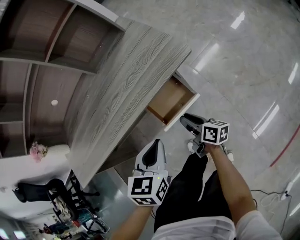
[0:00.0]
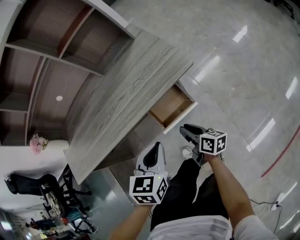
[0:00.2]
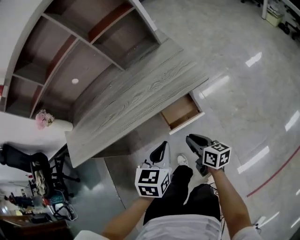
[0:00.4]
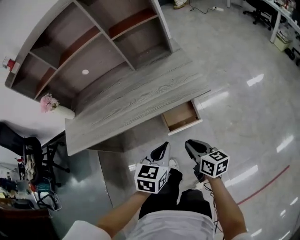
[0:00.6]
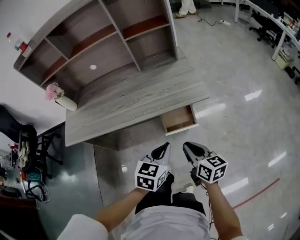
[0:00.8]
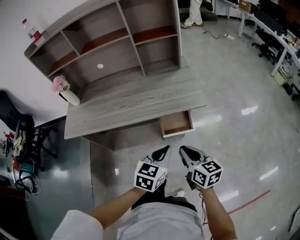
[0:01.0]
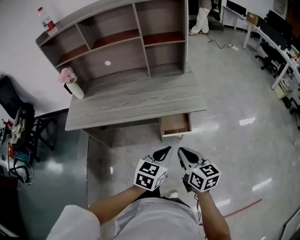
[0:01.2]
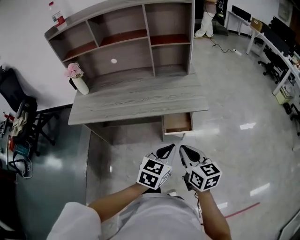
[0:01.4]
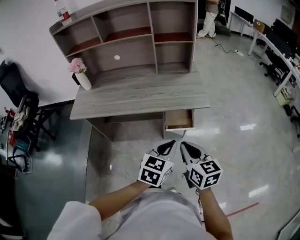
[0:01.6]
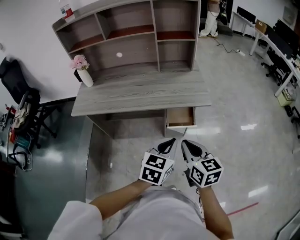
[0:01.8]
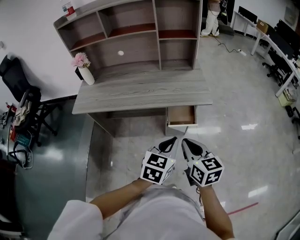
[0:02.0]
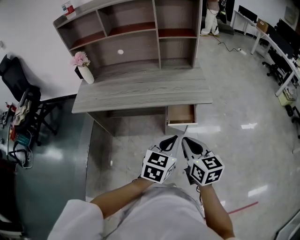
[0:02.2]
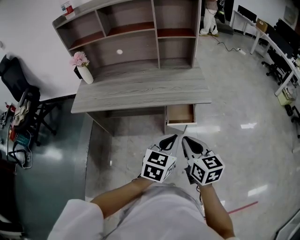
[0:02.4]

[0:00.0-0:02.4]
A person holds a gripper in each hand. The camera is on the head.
0.0 to 1.2 s: The left gripper heads upward and backward, covering about 15 cm, while the right gripper shifts approximately 35 cm upward and backward, rotates around the line of its fingers by roughly 40 degrees, counterclockwise from behind, and closes.
1.2 to 2.4 s: The right gripper ends up approximately 5 cm from where it was.

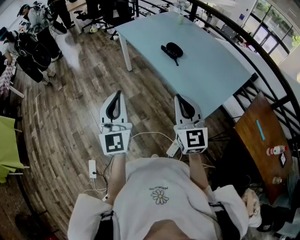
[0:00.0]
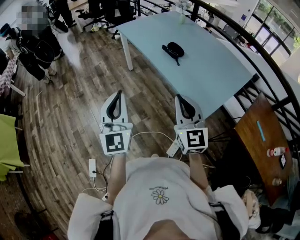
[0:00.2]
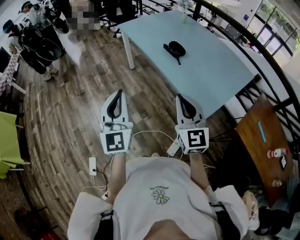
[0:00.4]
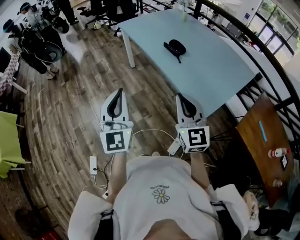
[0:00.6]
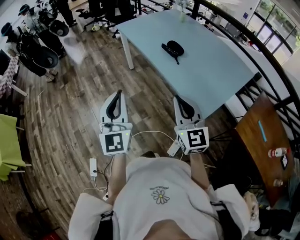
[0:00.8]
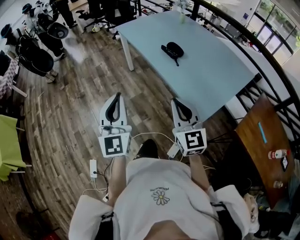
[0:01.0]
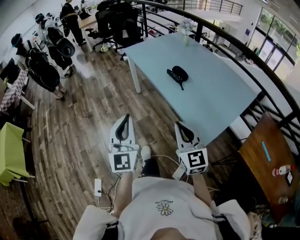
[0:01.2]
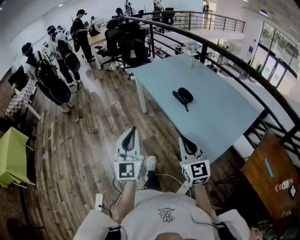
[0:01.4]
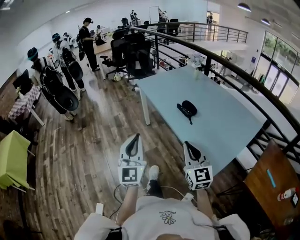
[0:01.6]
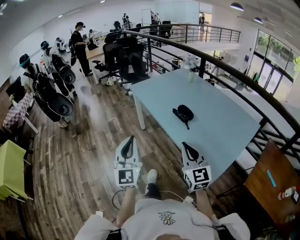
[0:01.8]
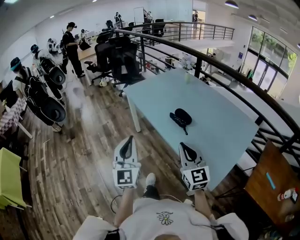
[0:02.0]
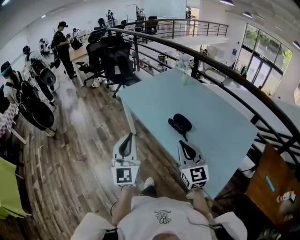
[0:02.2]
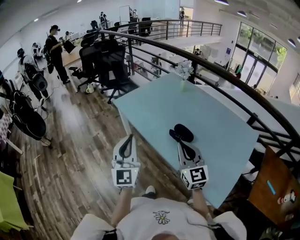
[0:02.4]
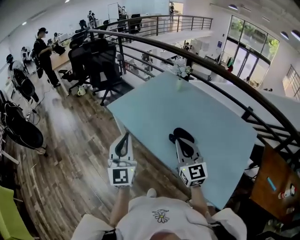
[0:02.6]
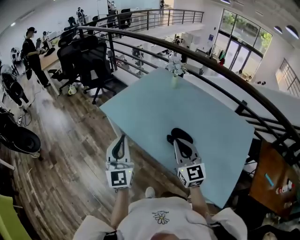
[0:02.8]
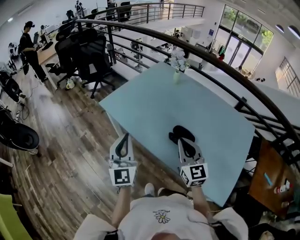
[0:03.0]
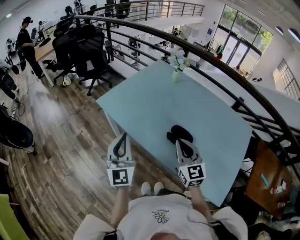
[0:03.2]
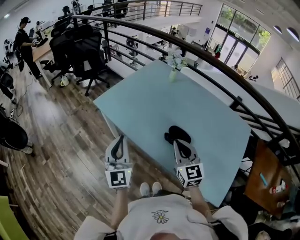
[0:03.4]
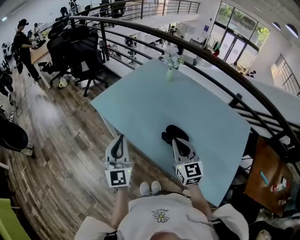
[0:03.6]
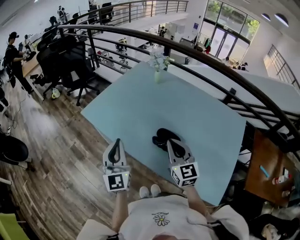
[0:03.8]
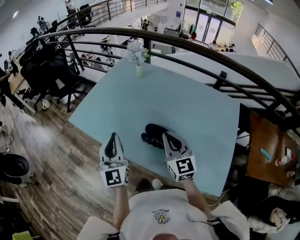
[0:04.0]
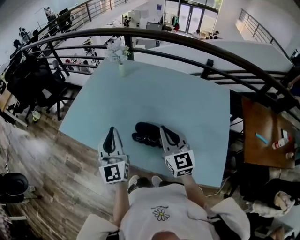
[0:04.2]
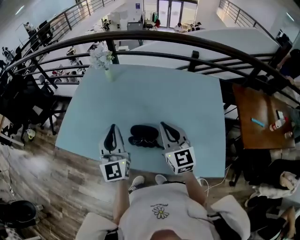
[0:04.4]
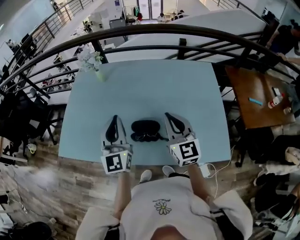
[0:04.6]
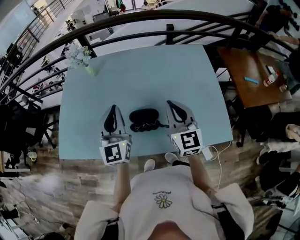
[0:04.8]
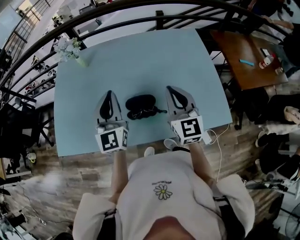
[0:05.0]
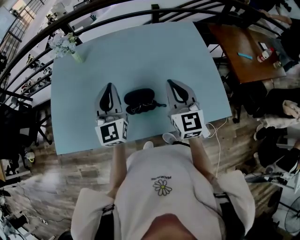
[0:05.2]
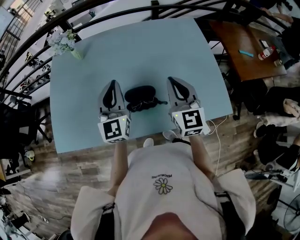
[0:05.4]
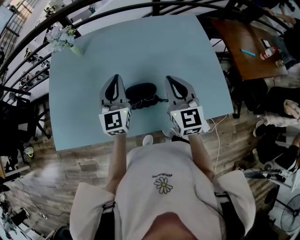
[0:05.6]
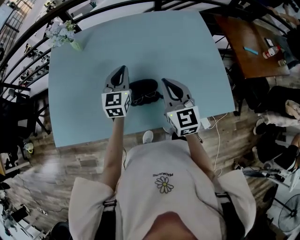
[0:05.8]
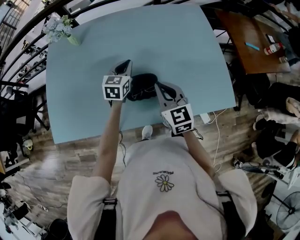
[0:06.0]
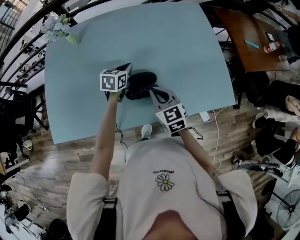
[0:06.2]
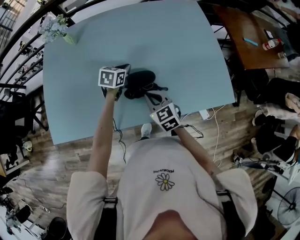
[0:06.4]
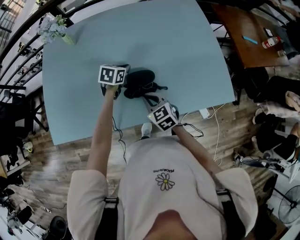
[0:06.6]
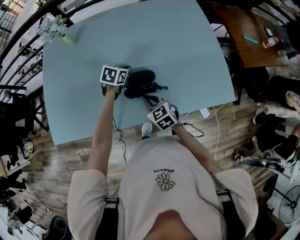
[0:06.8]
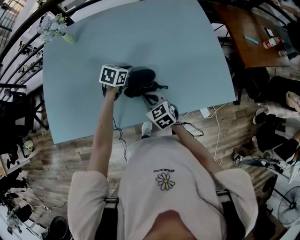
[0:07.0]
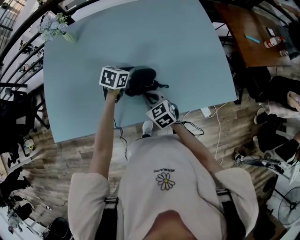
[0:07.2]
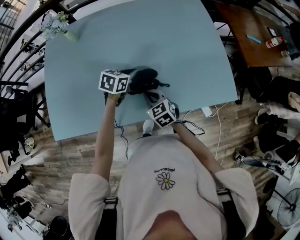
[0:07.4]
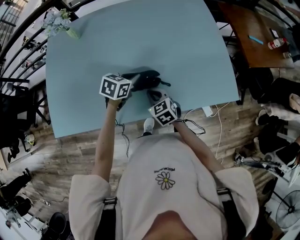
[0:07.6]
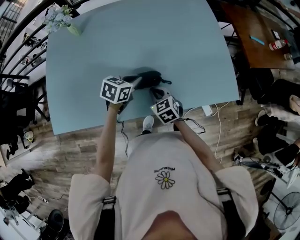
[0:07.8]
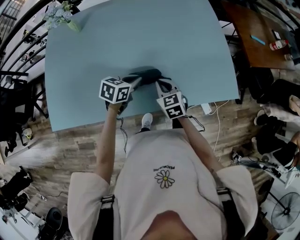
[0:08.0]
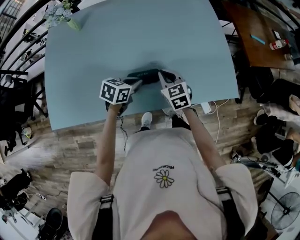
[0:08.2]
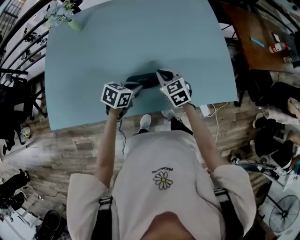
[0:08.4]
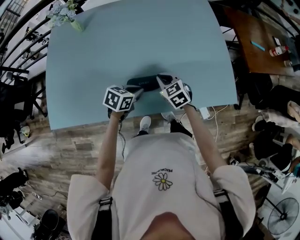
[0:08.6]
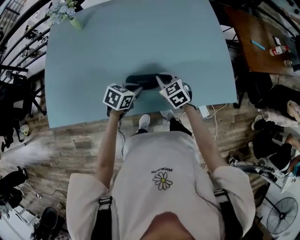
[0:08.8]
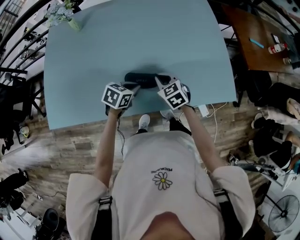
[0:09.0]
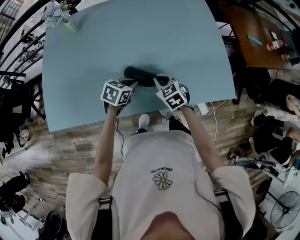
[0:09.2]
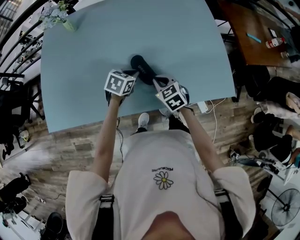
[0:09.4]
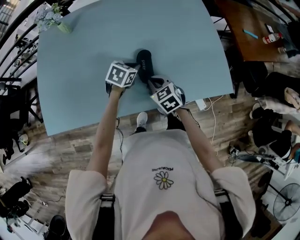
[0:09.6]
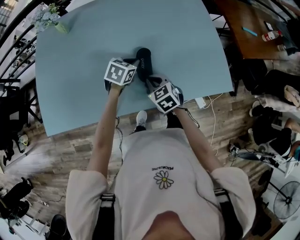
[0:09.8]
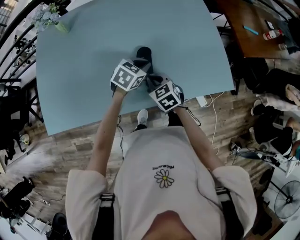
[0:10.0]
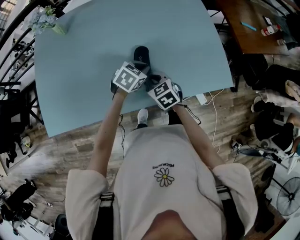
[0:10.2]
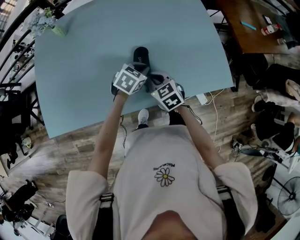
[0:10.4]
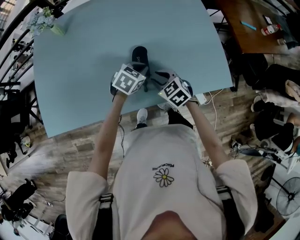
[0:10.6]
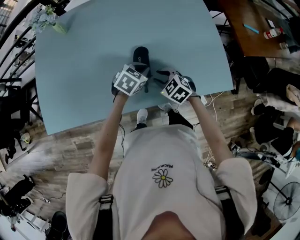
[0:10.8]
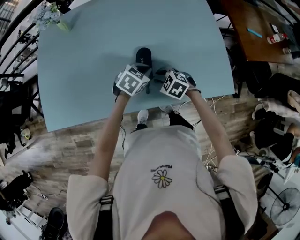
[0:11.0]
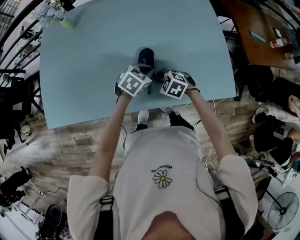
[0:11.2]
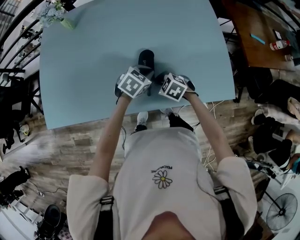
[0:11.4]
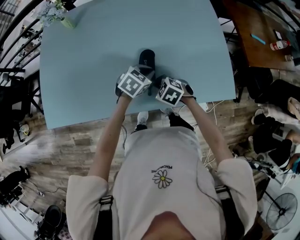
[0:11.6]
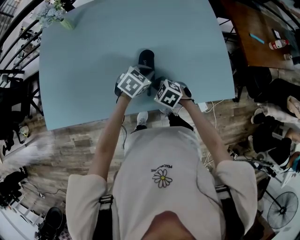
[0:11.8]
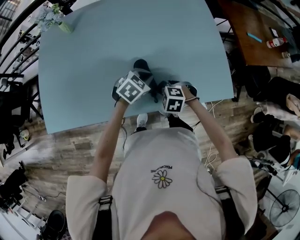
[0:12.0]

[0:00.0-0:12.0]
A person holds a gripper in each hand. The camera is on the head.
0.0 to 1.6 s: The grippers both shift forward by some 10 cm.
1.6 to 3.0 s: Both grippers travel together forward, about 40 cm. The right gripper changes its angle by some 20 degrees.
3.0 to 4.4 s: The left gripper goes roughly 25 cm to the right and forward, and rotates roughly 20 degrees; the right gripper goes some 15 cm to the right, and rotates roughly 20 degrees.
4.4 to 6.0 s: The left gripper moves downward, approximately 20 cm, and tips its fingers downward by approximately 40 degrees. Meanwhile the right gripper moves downward, some 10 cm, and turns by roughly 20 degrees.
6.0 to 7.6 s: The right gripper is displaced downward by approximately 15 cm, and rotates some 30 degrees. The left gripper travels backward and downward by roughly 10 cm, and swivels roughly 30 degrees.
7.6 to 9.0 s: The left gripper is displaced backward by about 5 cm; the right gripper moves roughly 5 cm.
9.0 to 10.4 s: The left gripper travels to the right and forward by some 10 cm.
10.4 to 12.0 s: The right gripper heads downward, covering approximately 5 cm, turns by roughly 50 degrees, and opens, then closes again.

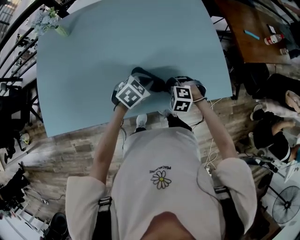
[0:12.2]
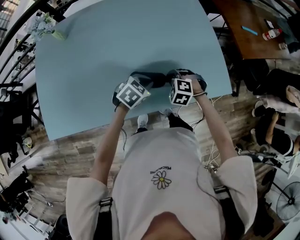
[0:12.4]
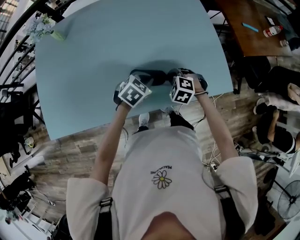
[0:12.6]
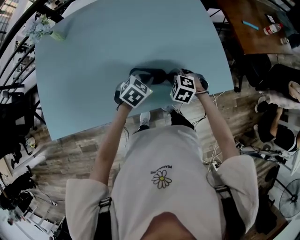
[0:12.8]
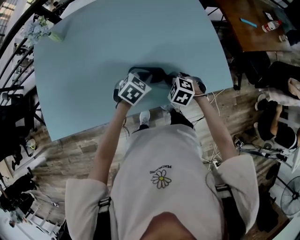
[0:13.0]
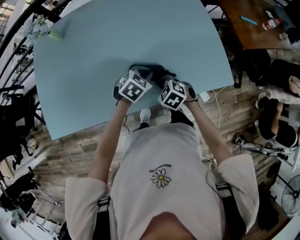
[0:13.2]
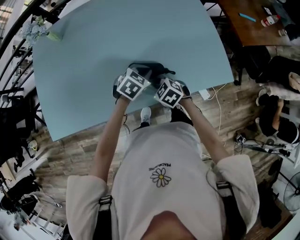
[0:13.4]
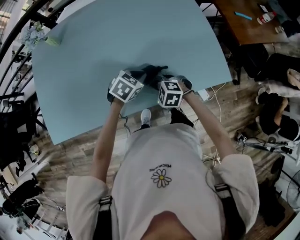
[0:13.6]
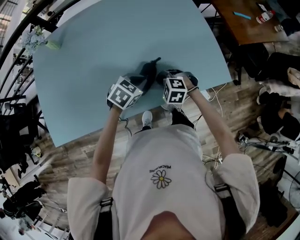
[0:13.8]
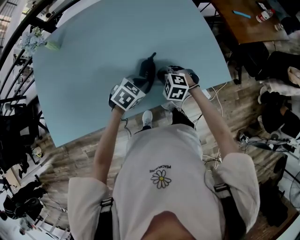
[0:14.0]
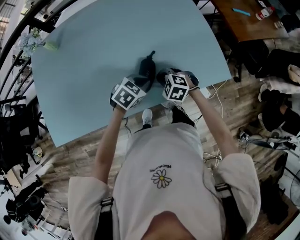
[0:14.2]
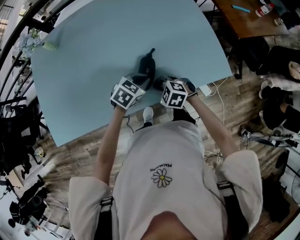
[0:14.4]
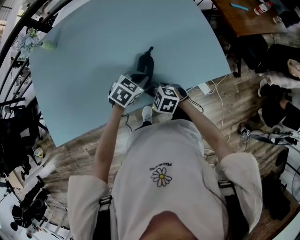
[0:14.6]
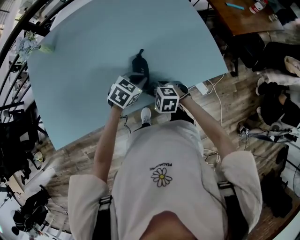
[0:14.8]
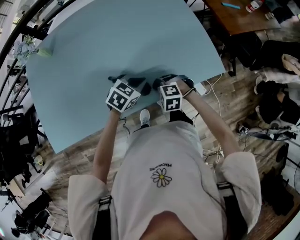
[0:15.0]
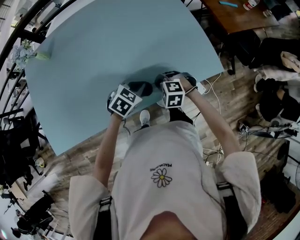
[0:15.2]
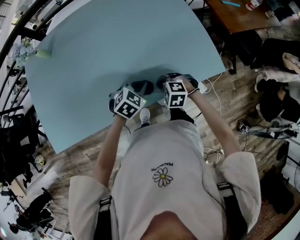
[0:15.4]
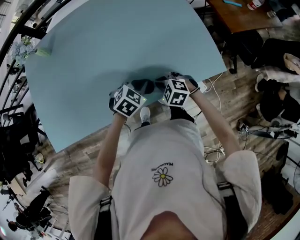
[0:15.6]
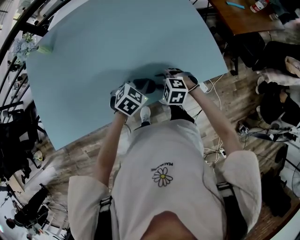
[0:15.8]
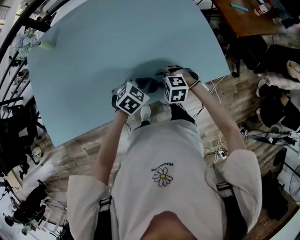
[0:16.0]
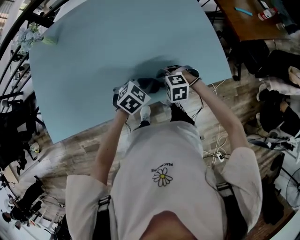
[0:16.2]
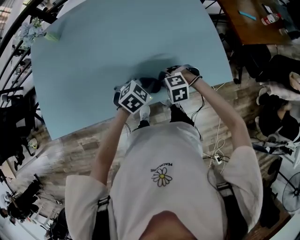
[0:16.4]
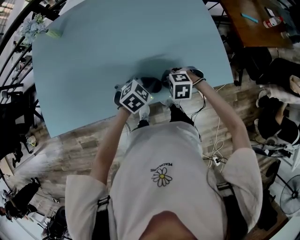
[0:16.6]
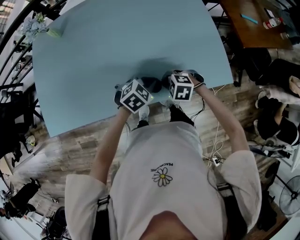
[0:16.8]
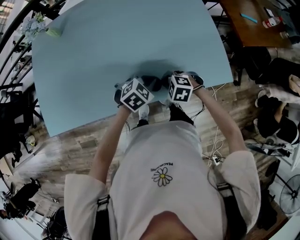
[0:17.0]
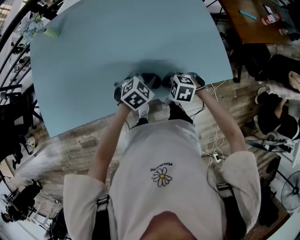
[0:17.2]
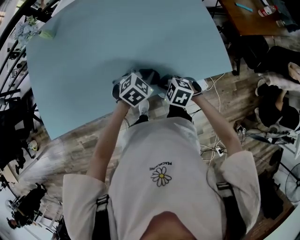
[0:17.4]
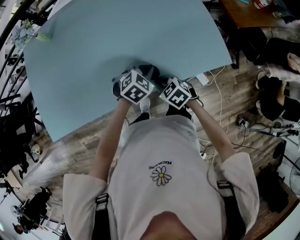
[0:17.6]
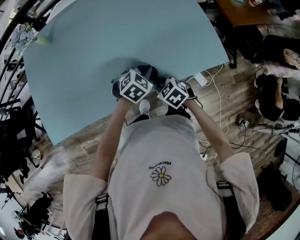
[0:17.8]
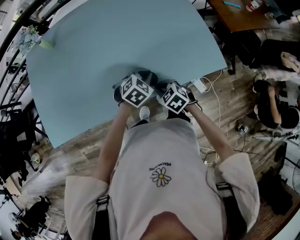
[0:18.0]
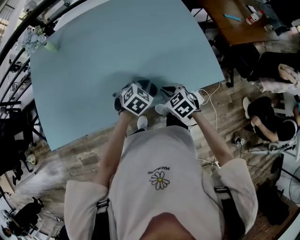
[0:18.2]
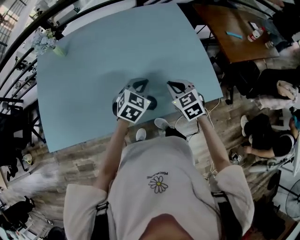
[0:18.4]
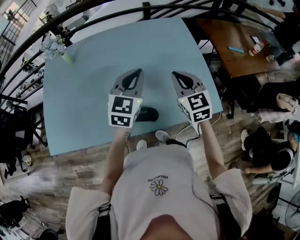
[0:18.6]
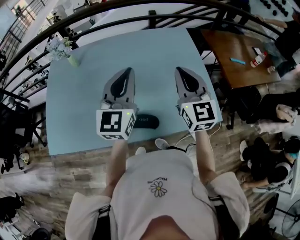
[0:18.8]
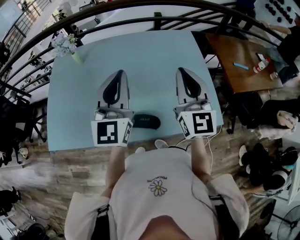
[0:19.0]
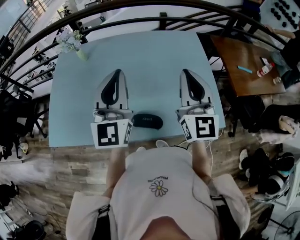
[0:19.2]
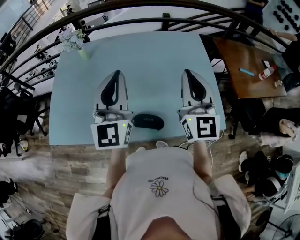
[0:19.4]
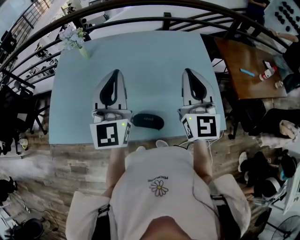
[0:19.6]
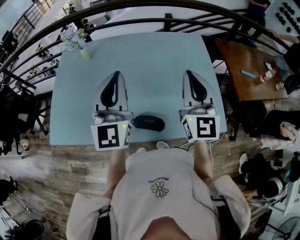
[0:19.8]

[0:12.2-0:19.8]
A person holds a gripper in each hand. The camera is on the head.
12.2 to 13.8 s: The right gripper moves approximately 5 cm to the left and comes back.
15.2 to 16.8 s: The right gripper opens, then closes once more.
16.8 to 18.2 s: The right gripper changes its angle by about 40 degrees.
18.2 to 19.8 s: The right gripper travels upward by some 35 cm, and tilts its fingers about 60 degrees upward; the left gripper goes about 40 cm upward and to the left, and points its fingers about 70 degrees further upward.

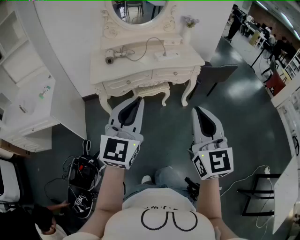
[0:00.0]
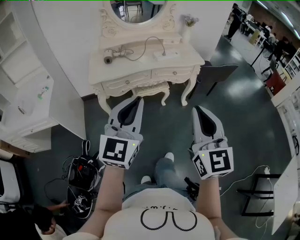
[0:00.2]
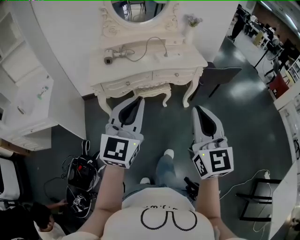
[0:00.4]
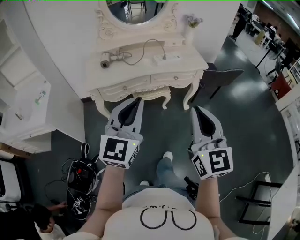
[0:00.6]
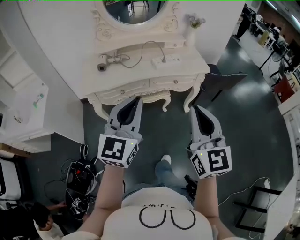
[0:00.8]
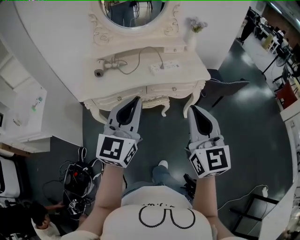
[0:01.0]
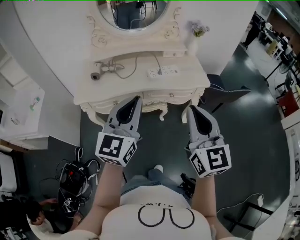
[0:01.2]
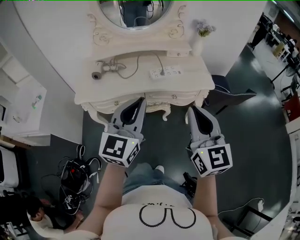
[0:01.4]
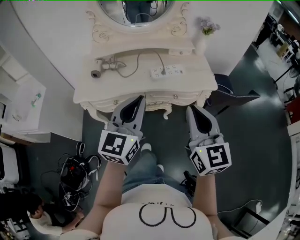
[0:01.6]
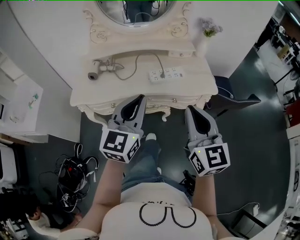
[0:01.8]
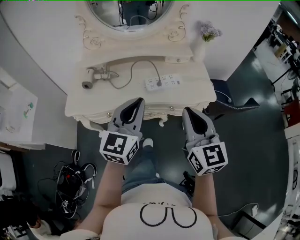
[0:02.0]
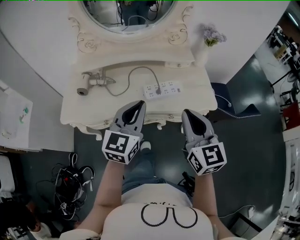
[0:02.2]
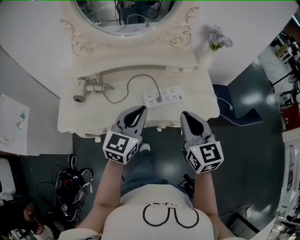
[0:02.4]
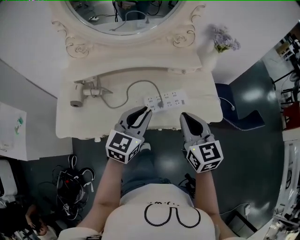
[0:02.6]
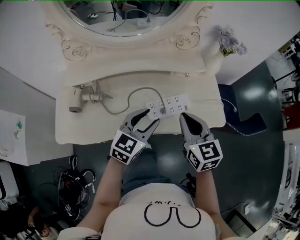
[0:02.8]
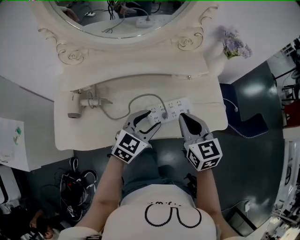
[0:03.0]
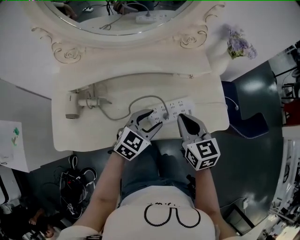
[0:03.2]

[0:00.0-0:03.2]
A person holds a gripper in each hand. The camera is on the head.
0.0 to 1.6 s: Both grippers move forward, roughly 35 cm.
1.6 to 3.2 s: The two grippers go approximately 40 cm forward and downward. The right gripper swivels roughly 30 degrees, while the left gripper changes its angle by approximately 40 degrees, and opens its fingers.
